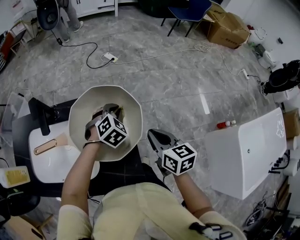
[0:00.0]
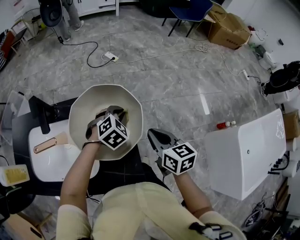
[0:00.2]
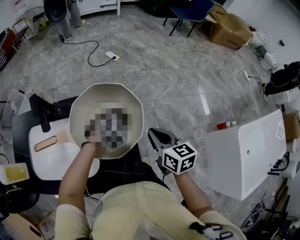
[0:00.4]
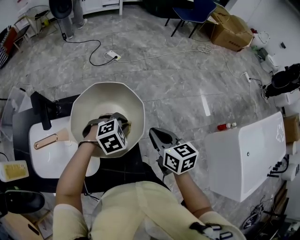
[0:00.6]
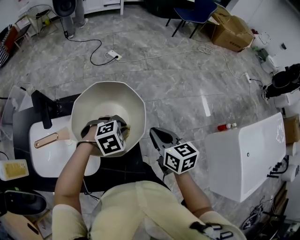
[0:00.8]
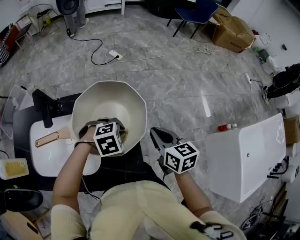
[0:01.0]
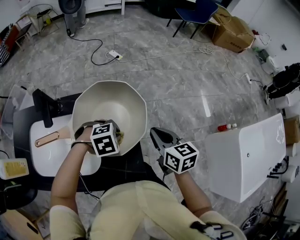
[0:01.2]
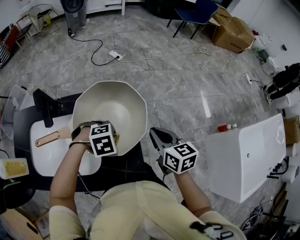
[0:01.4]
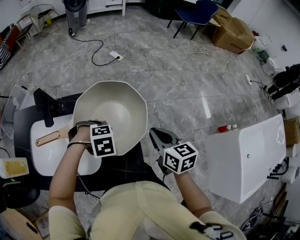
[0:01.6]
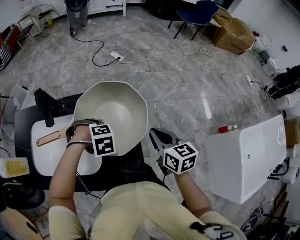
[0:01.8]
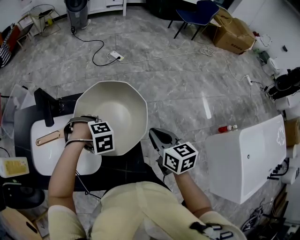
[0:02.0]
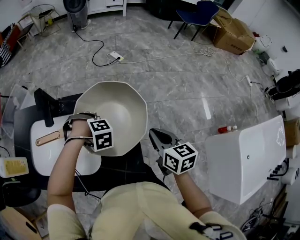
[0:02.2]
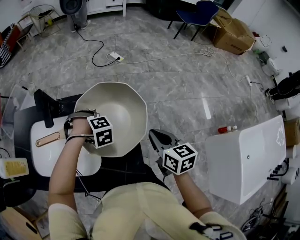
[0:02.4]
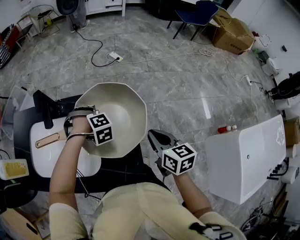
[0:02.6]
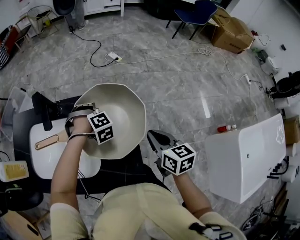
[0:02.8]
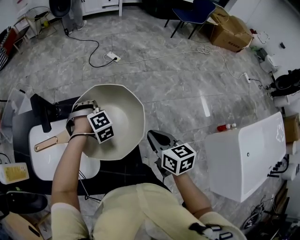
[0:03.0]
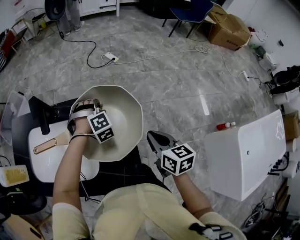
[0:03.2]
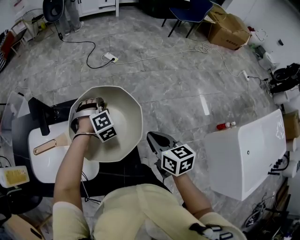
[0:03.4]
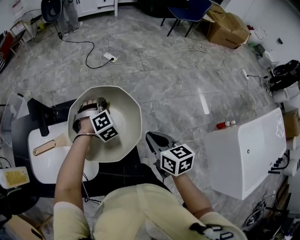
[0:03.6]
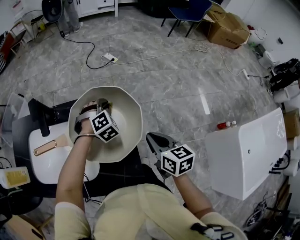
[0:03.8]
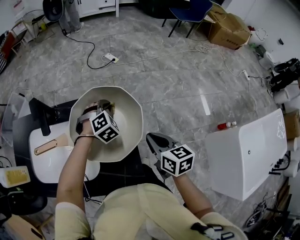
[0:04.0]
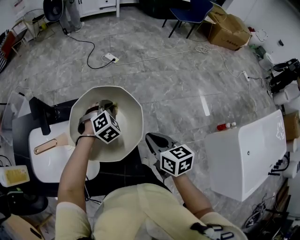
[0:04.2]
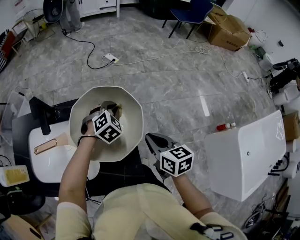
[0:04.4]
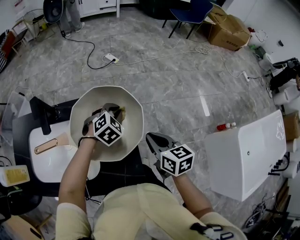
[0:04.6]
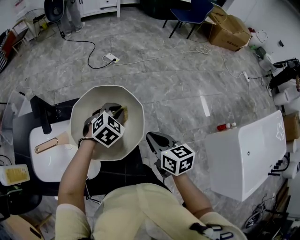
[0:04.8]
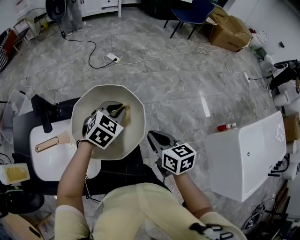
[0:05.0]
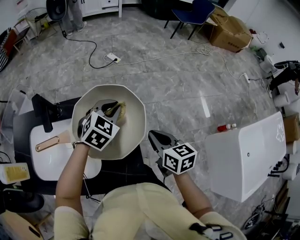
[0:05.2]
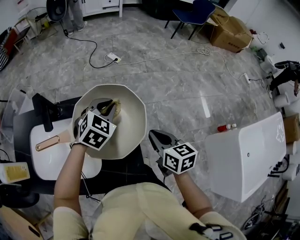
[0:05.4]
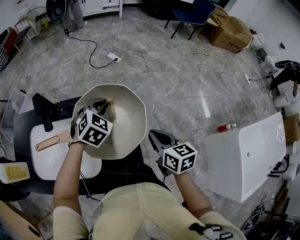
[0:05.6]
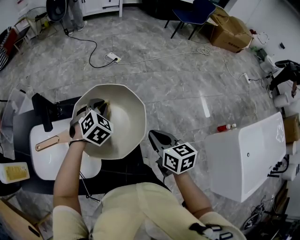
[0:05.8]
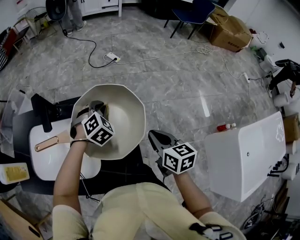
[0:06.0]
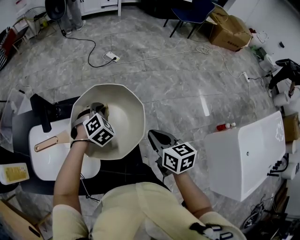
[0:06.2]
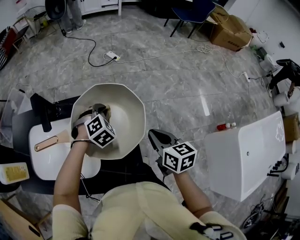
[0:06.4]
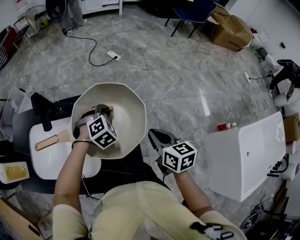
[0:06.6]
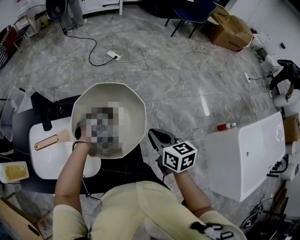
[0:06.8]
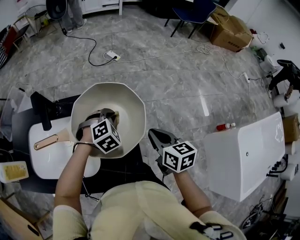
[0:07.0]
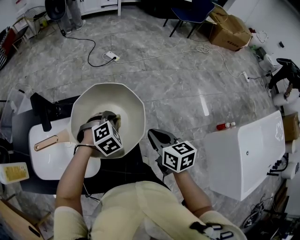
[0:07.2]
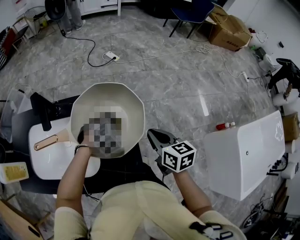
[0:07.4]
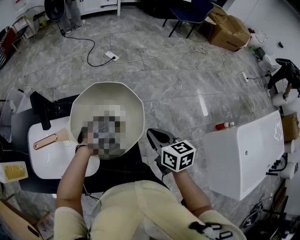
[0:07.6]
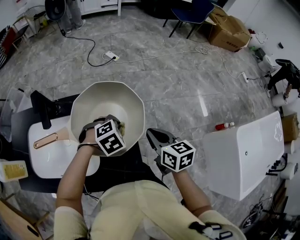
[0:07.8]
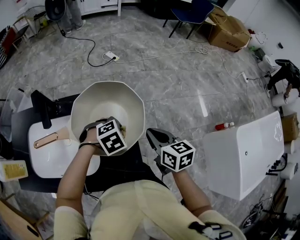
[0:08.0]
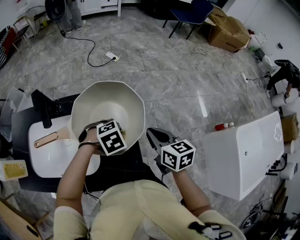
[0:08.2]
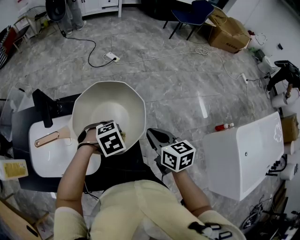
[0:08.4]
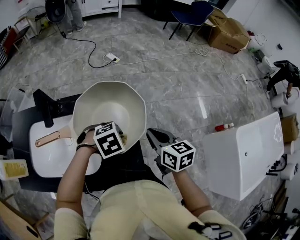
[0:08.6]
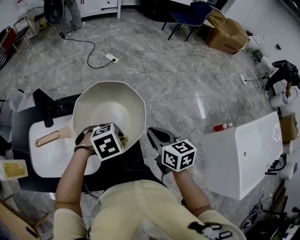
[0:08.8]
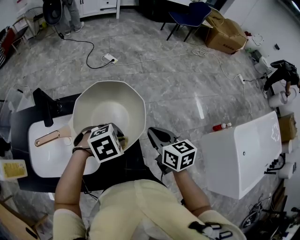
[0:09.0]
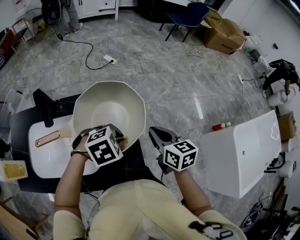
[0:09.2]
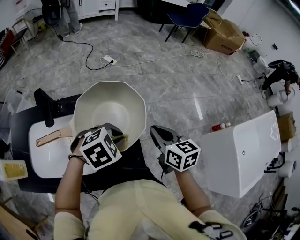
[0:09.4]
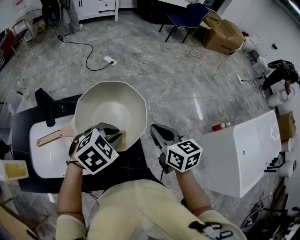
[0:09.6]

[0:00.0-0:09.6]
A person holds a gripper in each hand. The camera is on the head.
0:00.0 to 0:01.6: The left gripper shifts by roughly 15 cm, and tilts its fingers roughly 40 degrees downward.
0:01.6 to 0:03.2: The left gripper changes place by approximately 15 cm, and tilts its fingers some 30 degrees upward.
0:03.2 to 0:04.8: The left gripper is displaced to the right and backward by approximately 10 cm, and turns by about 40 degrees.
0:04.8 to 0:06.4: The left gripper heads to the left, covering roughly 5 cm, goes upward and returns, about 5 cm each way, and swivels approximately 20 degrees.
0:06.4 to 0:08.0: The left gripper goes some 10 cm backward and to the right, and changes its angle by some 30 degrees.
0:08.0 to 0:09.6: The left gripper goes some 10 cm upward and backward. Meanwhile the right gripper shifts about 5 cm upward.

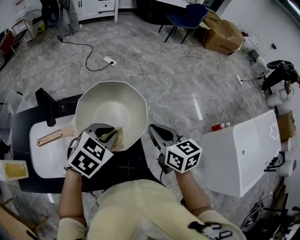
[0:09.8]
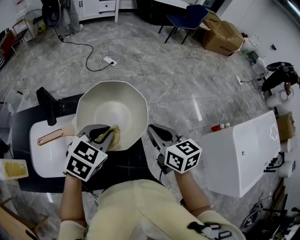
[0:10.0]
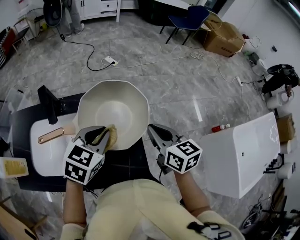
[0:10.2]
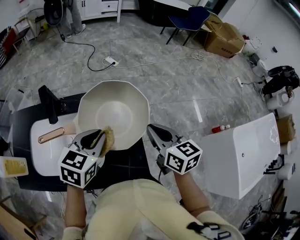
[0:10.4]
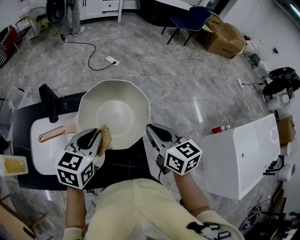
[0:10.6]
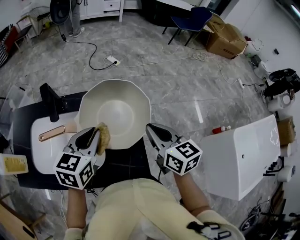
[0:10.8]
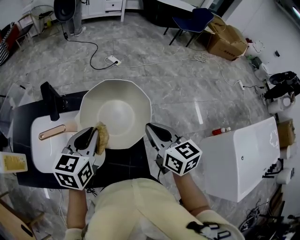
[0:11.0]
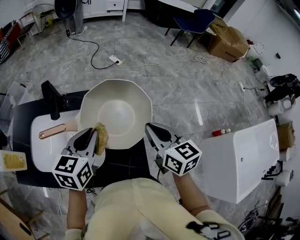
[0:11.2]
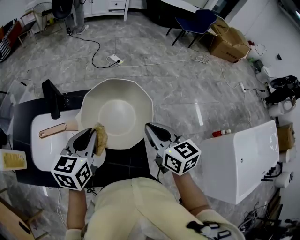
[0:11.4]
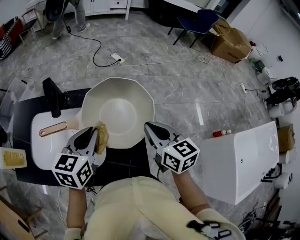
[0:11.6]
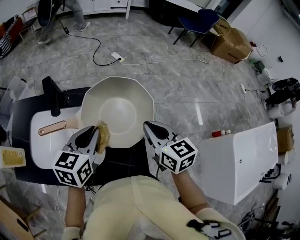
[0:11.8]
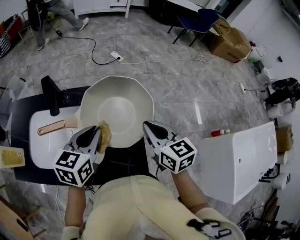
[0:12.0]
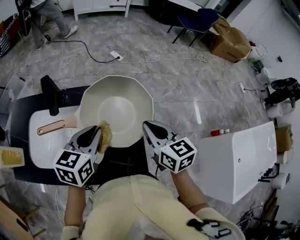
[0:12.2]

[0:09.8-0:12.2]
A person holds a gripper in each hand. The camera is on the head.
0:09.8 to 0:11.0: The left gripper shifts roughly 10 cm to the left, and turns by some 40 degrees.
0:11.0 to 0:12.2: There are only small adjustments of the grippers.

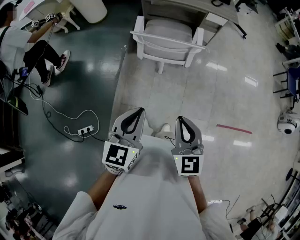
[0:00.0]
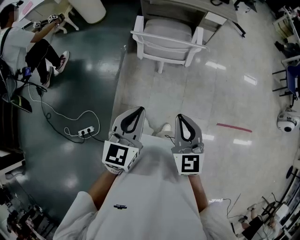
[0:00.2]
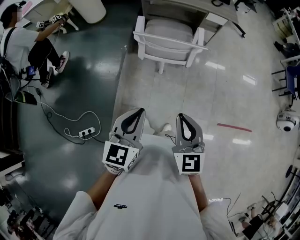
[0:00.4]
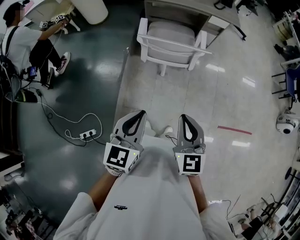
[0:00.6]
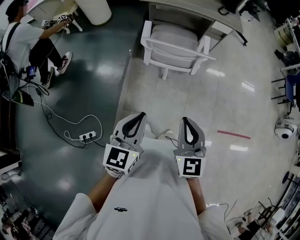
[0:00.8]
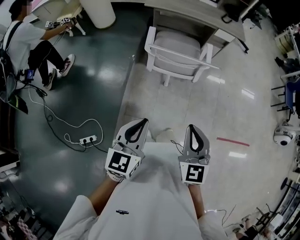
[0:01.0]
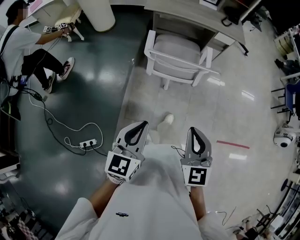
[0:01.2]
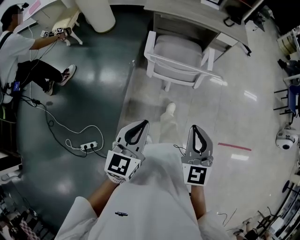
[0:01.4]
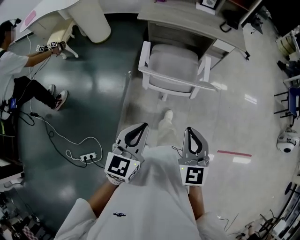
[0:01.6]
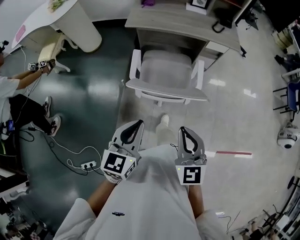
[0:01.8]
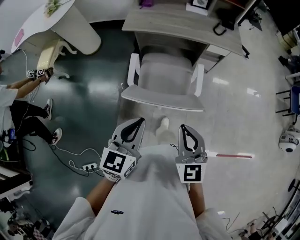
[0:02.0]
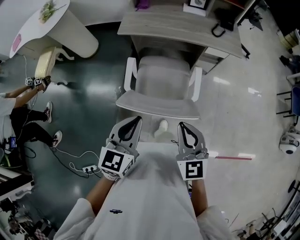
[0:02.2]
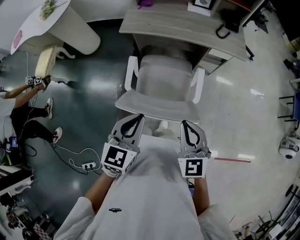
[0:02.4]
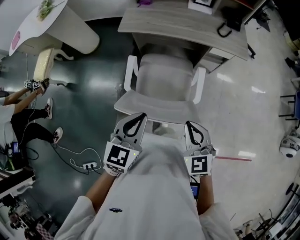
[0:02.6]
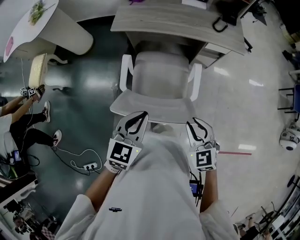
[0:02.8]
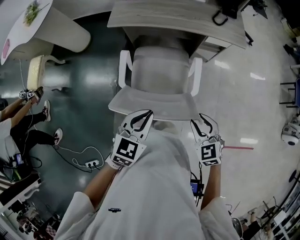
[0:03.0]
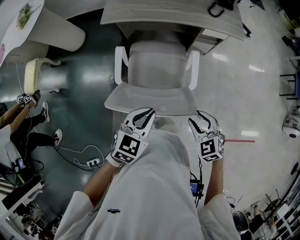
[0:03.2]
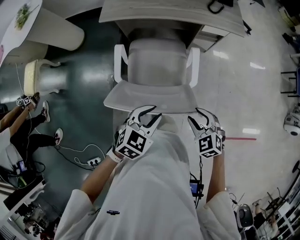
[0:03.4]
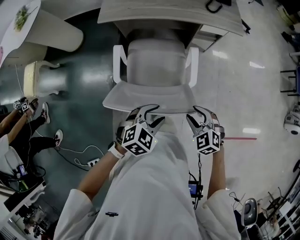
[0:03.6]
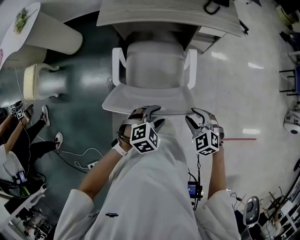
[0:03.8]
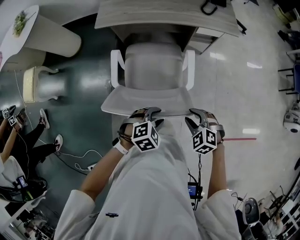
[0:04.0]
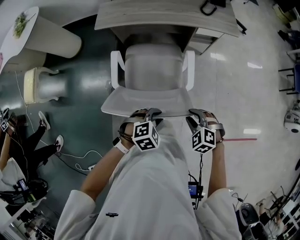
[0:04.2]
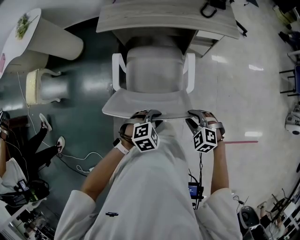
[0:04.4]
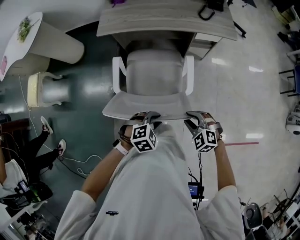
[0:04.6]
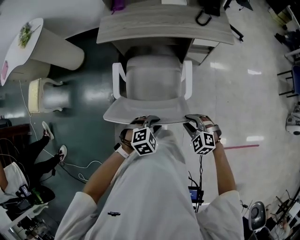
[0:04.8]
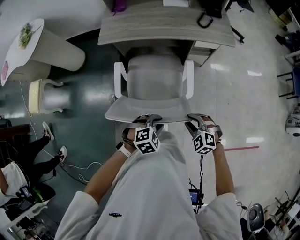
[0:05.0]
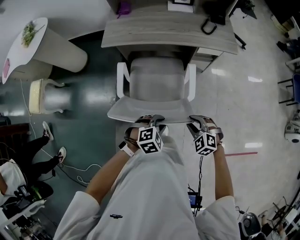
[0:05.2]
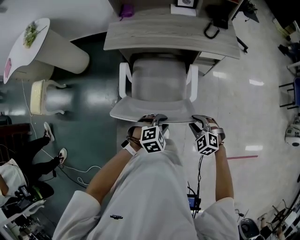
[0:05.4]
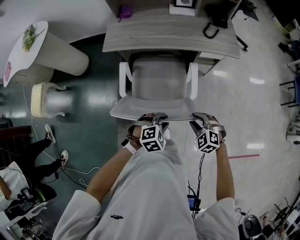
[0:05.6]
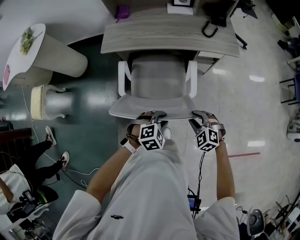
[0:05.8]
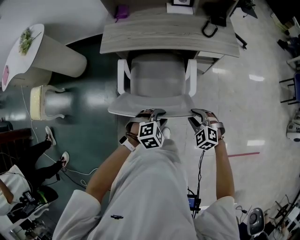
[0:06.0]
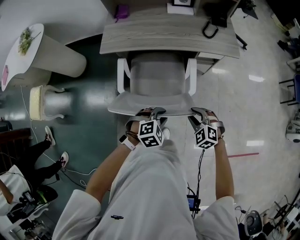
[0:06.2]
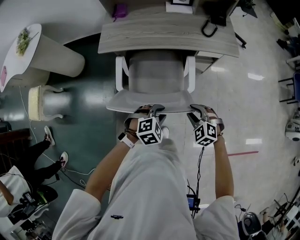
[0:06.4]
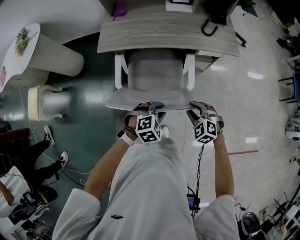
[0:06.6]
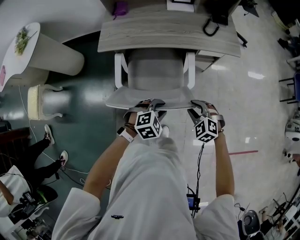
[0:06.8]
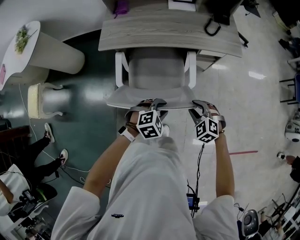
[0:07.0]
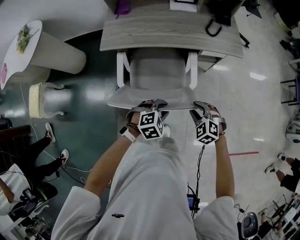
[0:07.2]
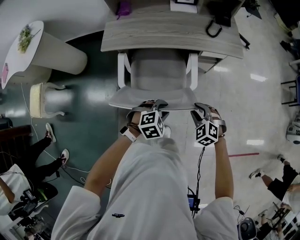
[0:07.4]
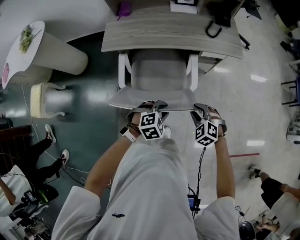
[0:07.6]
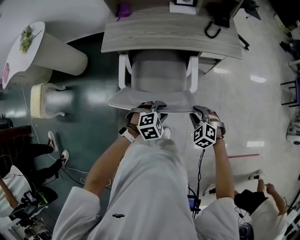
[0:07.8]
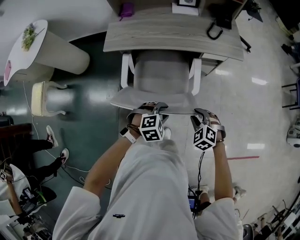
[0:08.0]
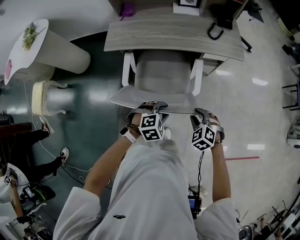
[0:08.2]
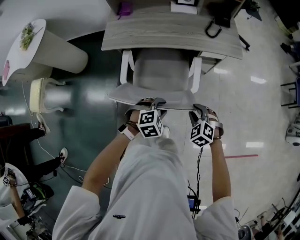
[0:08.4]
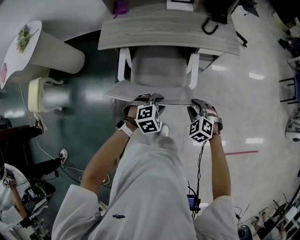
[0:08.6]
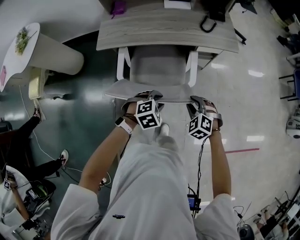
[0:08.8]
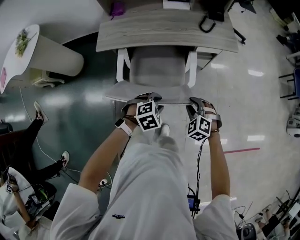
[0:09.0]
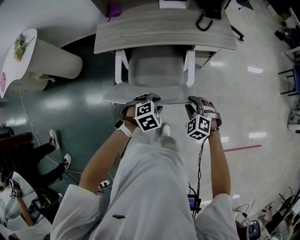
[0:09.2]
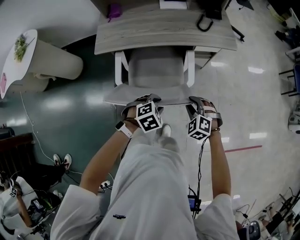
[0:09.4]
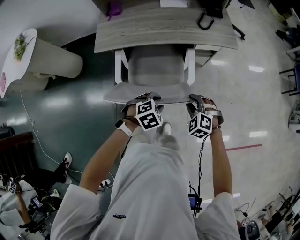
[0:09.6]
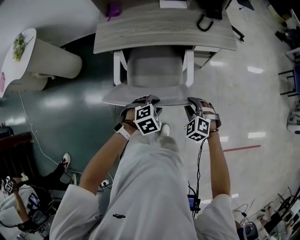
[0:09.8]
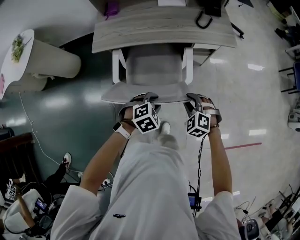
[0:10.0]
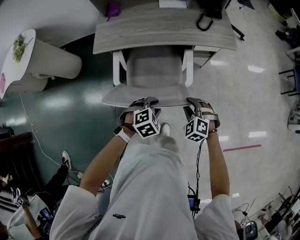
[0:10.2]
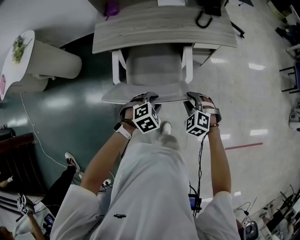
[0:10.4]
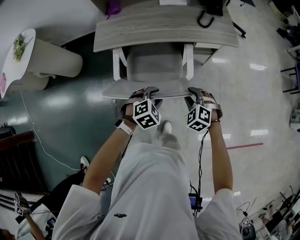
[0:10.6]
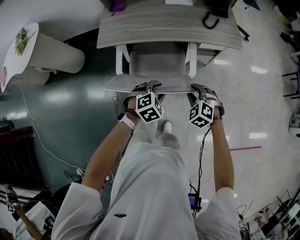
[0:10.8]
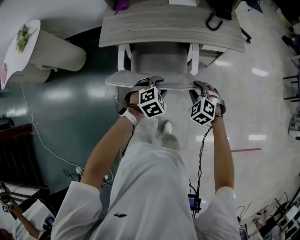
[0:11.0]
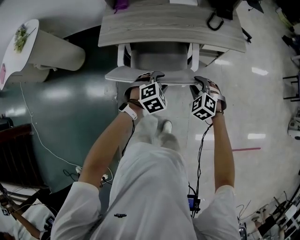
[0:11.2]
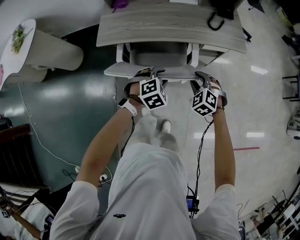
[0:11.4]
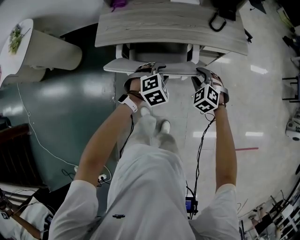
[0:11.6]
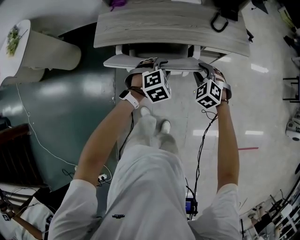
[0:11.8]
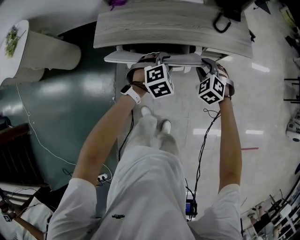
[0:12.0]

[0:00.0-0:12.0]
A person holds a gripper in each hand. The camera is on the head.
0:00.0 to 0:01.6: The right gripper is displaced forward by about 15 cm; the left gripper heads forward and to the left, covering some 15 cm.
0:01.6 to 0:03.0: The right gripper moves forward, to the right and downward, roughly 30 cm, turns by some 20 degrees, and opens up, while the left gripper goes some 30 cm forward and to the right, and turns by some 20 degrees.
0:03.0 to 0:04.4: The right gripper moves downward, approximately 10 cm, and changes its angle by about 30 degrees. The left gripper moves downward and to the right, some 15 cm, points its fingers about 30 degrees further downward, and opens its fingers.
0:04.4 to 0:06.0: Both grippers move forward, roughly 15 cm.
0:06.0 to 0:10.4: The grippers make only small movements.
0:10.4 to 0:12.0: Both grippers travel together forward, some 20 cm.
